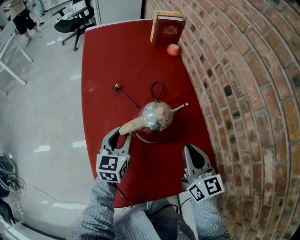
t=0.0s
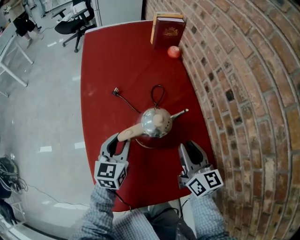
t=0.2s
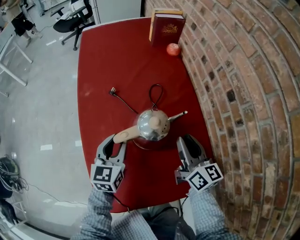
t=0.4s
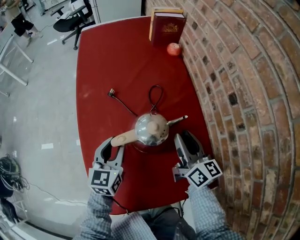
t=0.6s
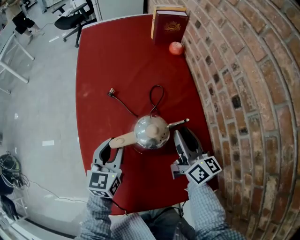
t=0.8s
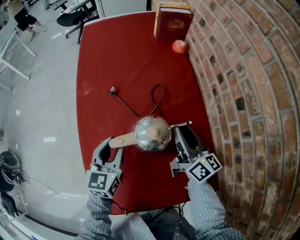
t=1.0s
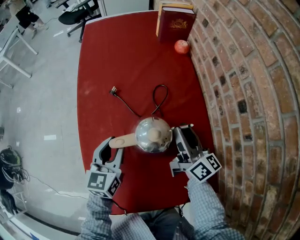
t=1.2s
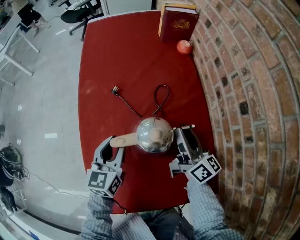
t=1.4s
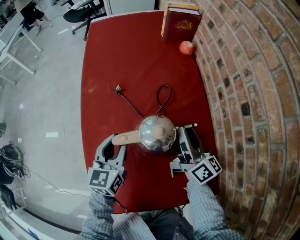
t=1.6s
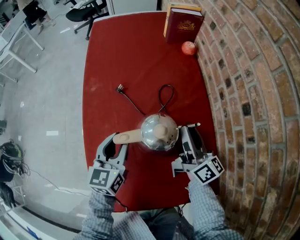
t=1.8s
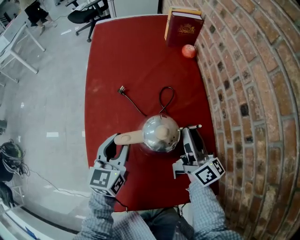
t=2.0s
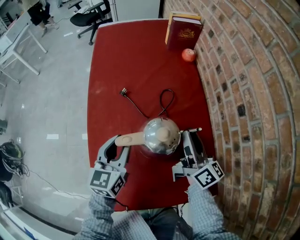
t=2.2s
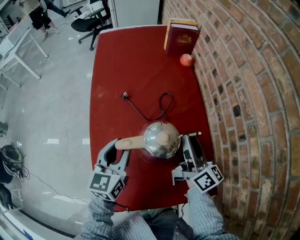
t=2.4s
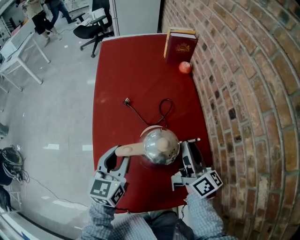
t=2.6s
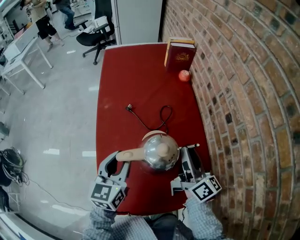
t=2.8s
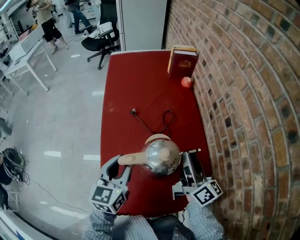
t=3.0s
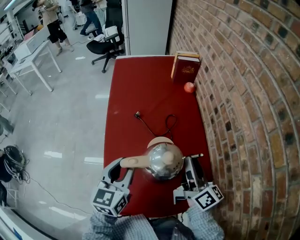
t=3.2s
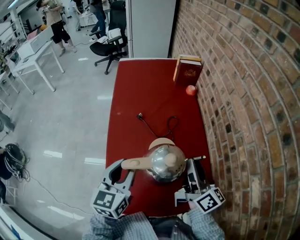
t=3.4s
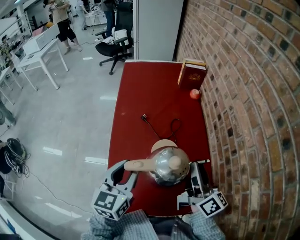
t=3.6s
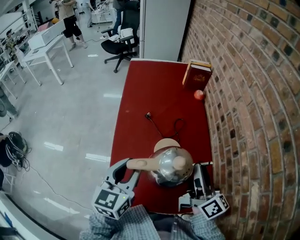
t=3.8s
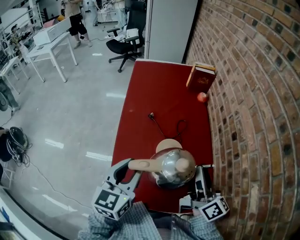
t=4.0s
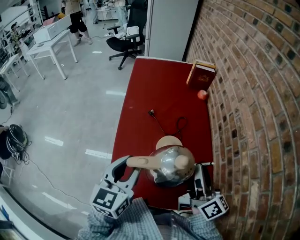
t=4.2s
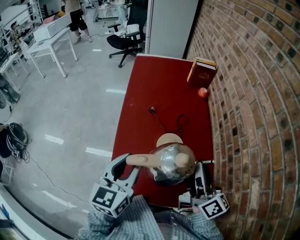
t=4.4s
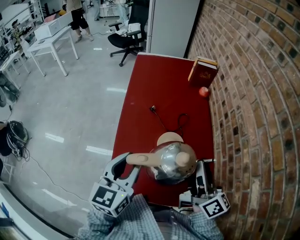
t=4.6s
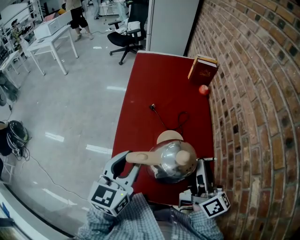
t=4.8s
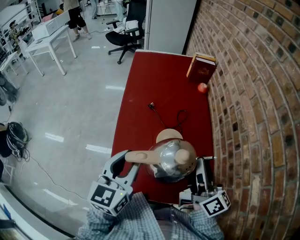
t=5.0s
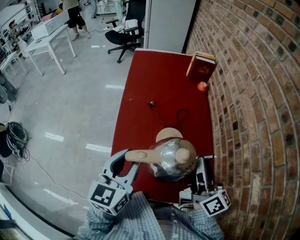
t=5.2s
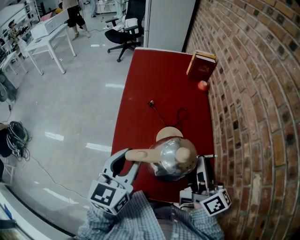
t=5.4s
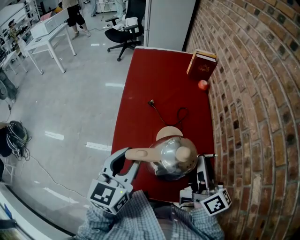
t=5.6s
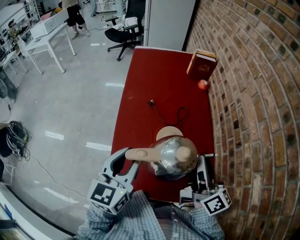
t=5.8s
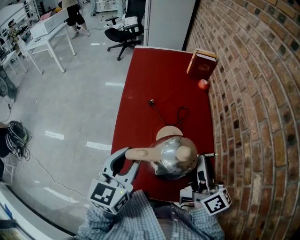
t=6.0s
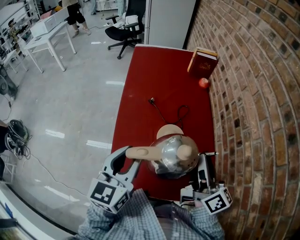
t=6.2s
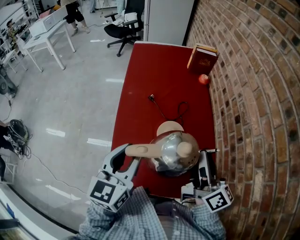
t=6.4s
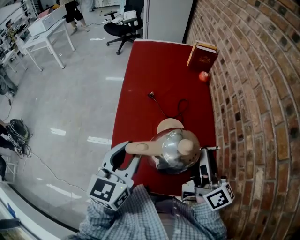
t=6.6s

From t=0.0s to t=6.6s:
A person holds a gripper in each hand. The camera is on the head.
From t=0.0s to t=1.6s: The right gripper travels forward by approximately 15 cm, swivels approximately 40 degrees, and opens.
From t=1.6s to t=3.2s: Both grippers travel together upward and backward, about 15 cm.
From t=3.2s to t=5.0s: The two grippers go roughly 10 cm upward and backward.
From t=5.0s to t=6.6s: Both grippers stay put.

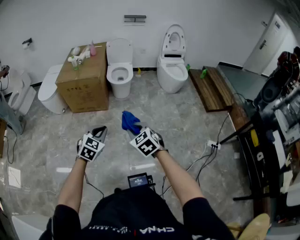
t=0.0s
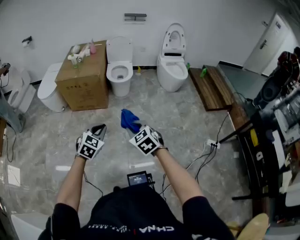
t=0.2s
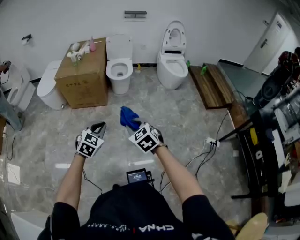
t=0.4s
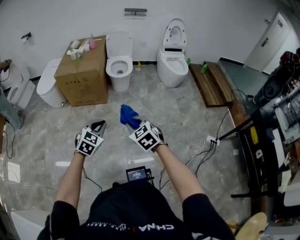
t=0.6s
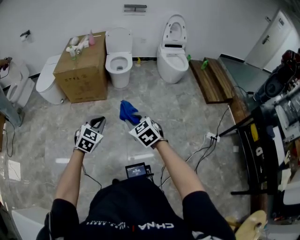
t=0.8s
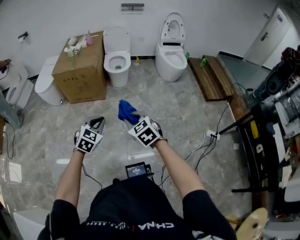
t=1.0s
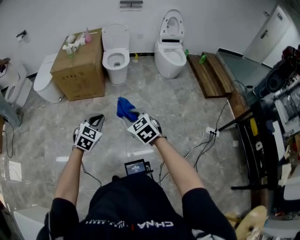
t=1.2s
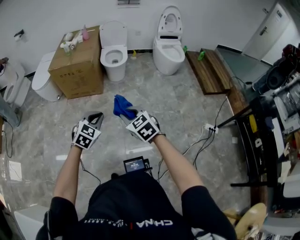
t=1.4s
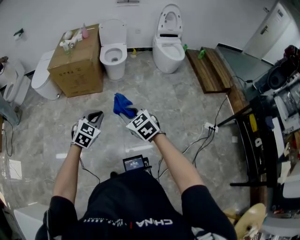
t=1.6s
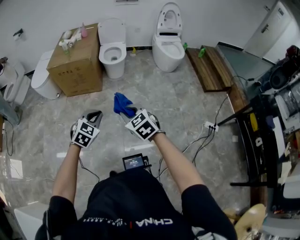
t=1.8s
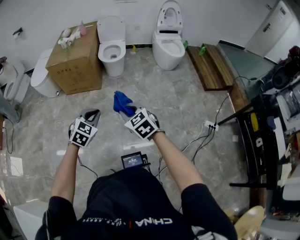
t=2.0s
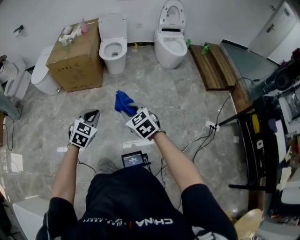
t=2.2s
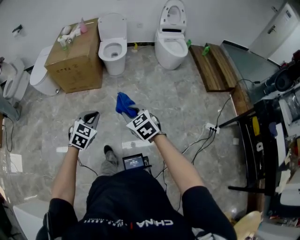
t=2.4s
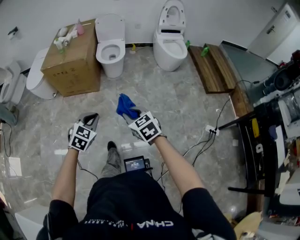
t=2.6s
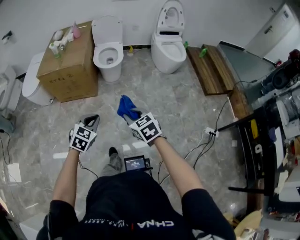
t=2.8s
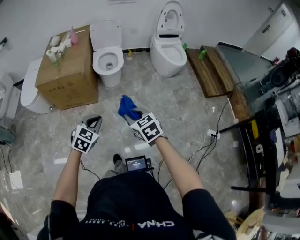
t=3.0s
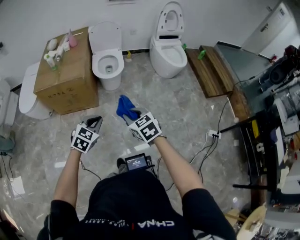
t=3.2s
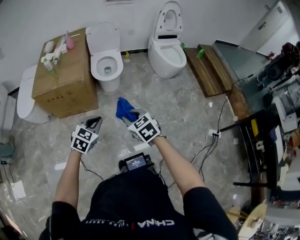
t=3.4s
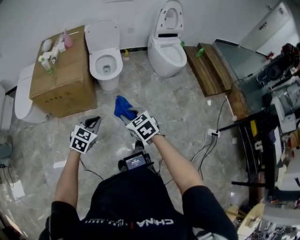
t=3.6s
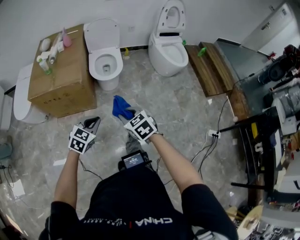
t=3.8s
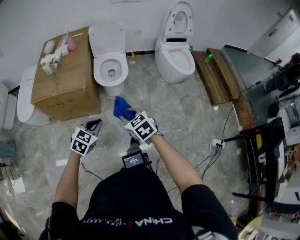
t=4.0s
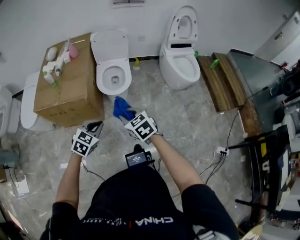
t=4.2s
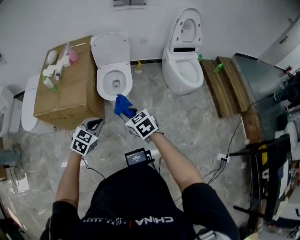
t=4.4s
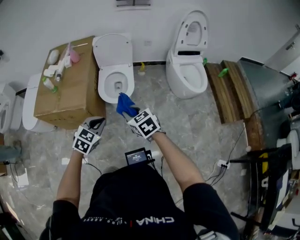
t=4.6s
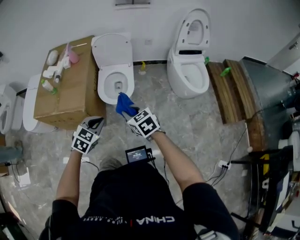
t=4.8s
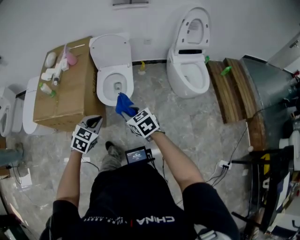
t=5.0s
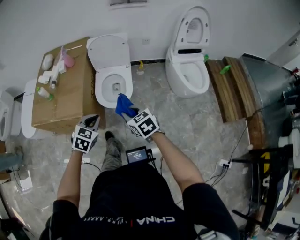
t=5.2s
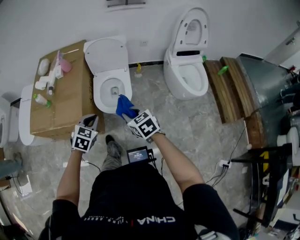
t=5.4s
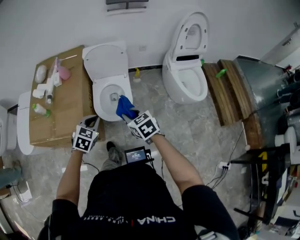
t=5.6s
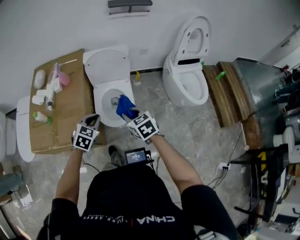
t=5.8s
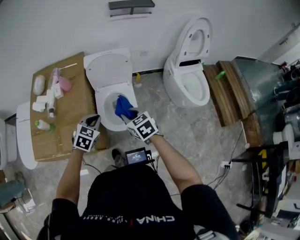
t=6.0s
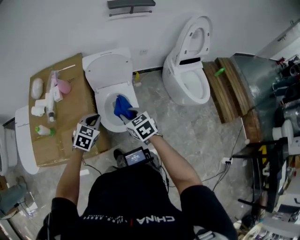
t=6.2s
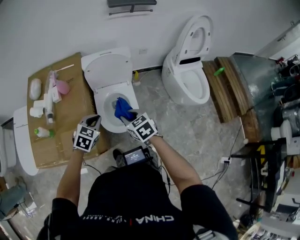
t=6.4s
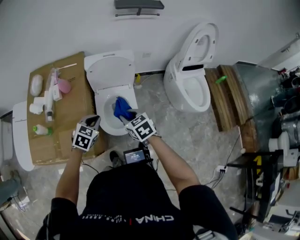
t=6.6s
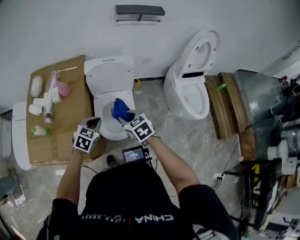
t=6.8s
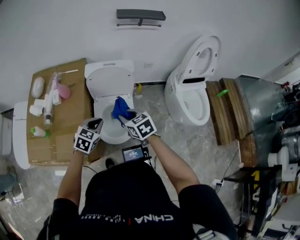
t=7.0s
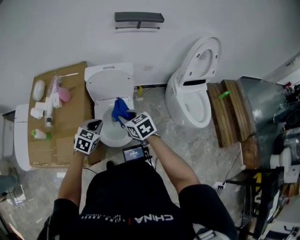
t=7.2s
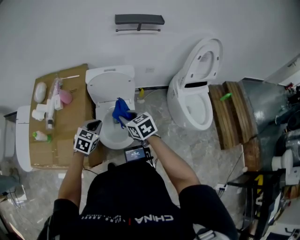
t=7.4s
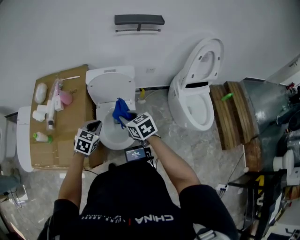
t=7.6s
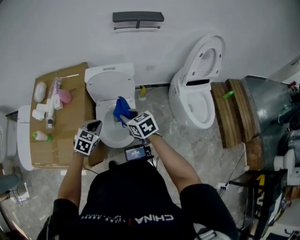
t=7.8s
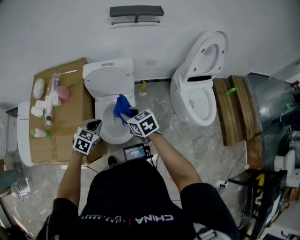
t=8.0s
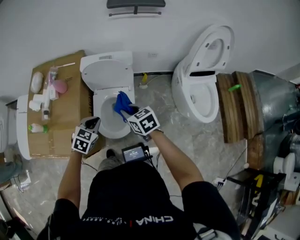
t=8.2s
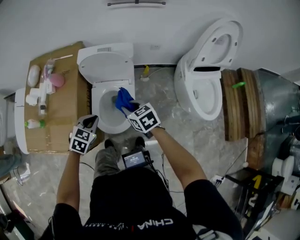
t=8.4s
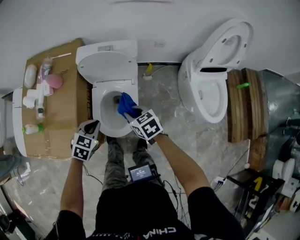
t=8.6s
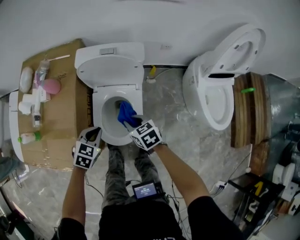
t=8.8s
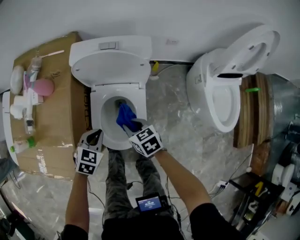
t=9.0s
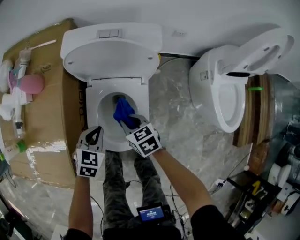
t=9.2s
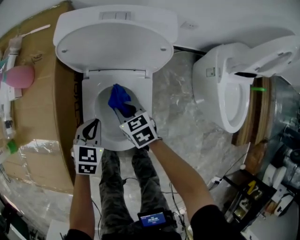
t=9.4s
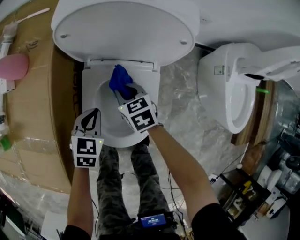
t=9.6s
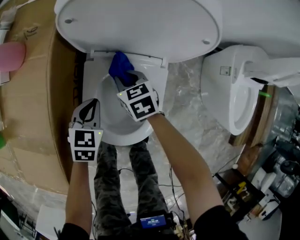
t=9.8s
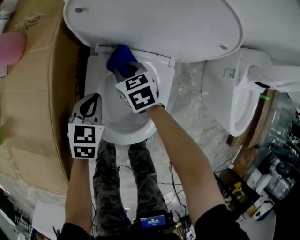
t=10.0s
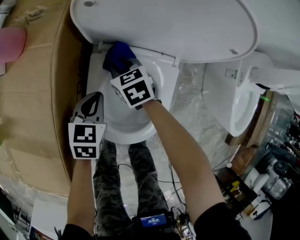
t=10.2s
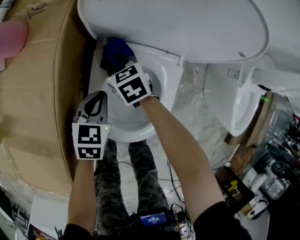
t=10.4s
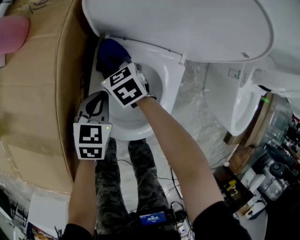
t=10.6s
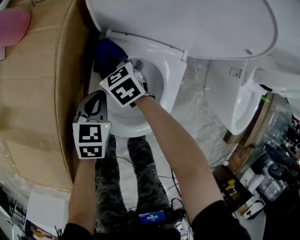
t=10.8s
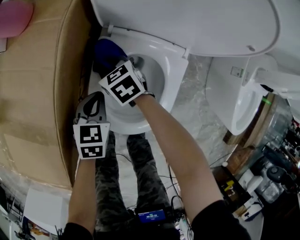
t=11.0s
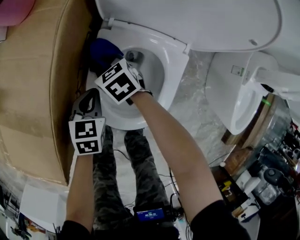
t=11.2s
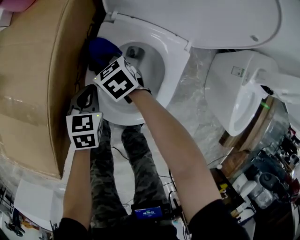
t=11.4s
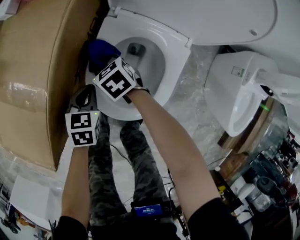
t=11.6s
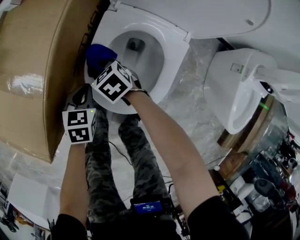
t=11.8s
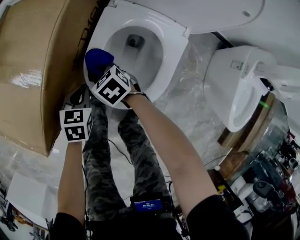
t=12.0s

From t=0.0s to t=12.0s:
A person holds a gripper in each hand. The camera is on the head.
From t=0.0s to t=1.6s: The left gripper shifts by roughly 5 cm.
From t=1.6s to t=3.0s: Both grippers move forward, approximately 25 cm.
From t=3.0s to t=4.4s: Both grippers move forward, about 35 cm.
From t=4.4s to t=6.0s: The grippers both shift forward by some 35 cm.
From t=6.0s to t=7.6s: Both grippers move forward, roughly 10 cm.
From t=7.6s to t=9.0s: The grippers both shift downward by some 25 cm.
From t=9.0s to t=10.4s: The left gripper moves downward and forward, some 20 cm, and changes its angle by roughly 30 degrees. Meanwhile the right gripper is displaced downward, forward and to the left by approximately 35 cm.
From t=10.4s to t=12.0s: The right gripper shifts by about 25 cm, and turns by roughly 30 degrees. The left gripper changes place by some 20 cm.

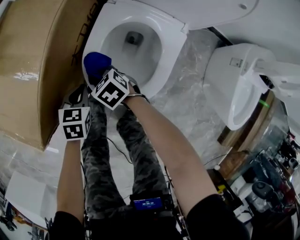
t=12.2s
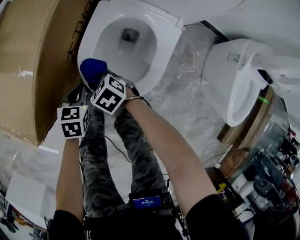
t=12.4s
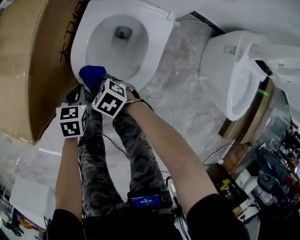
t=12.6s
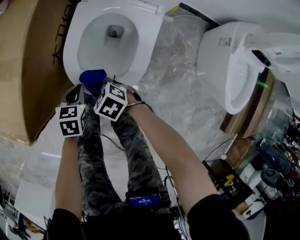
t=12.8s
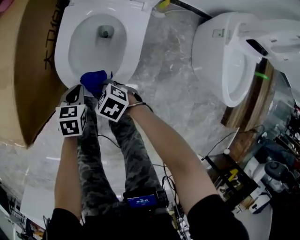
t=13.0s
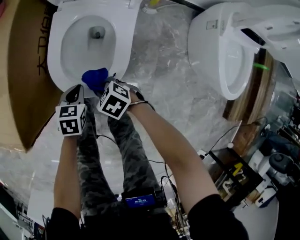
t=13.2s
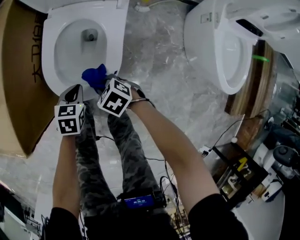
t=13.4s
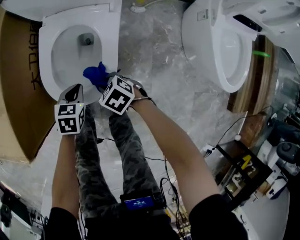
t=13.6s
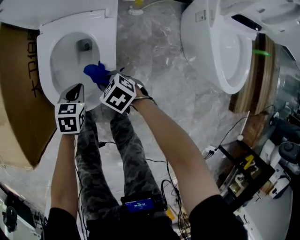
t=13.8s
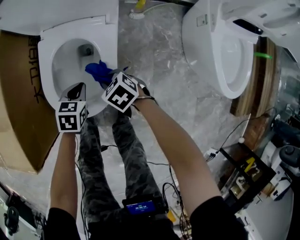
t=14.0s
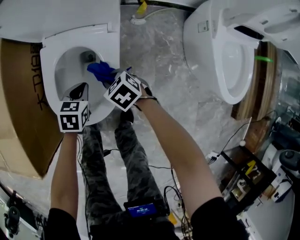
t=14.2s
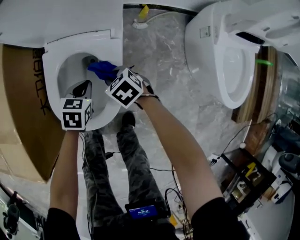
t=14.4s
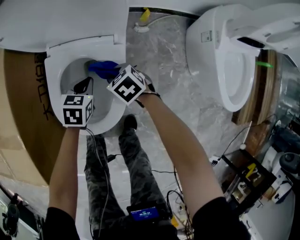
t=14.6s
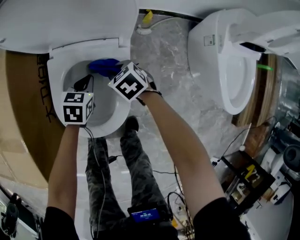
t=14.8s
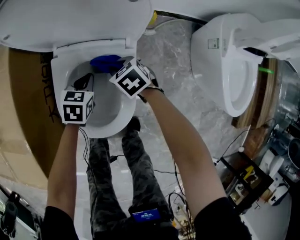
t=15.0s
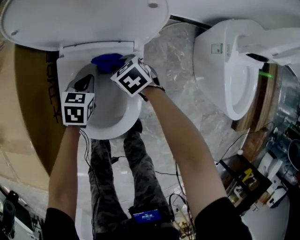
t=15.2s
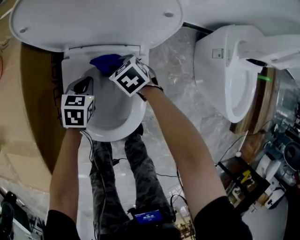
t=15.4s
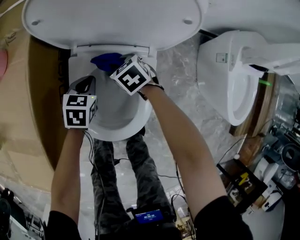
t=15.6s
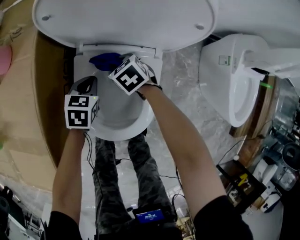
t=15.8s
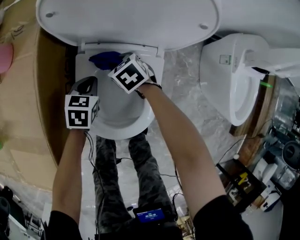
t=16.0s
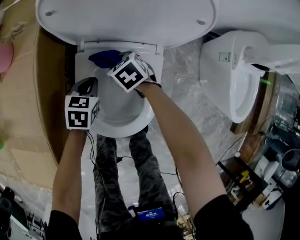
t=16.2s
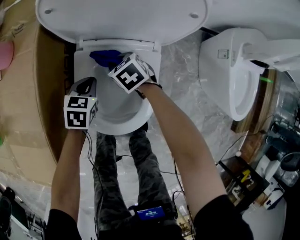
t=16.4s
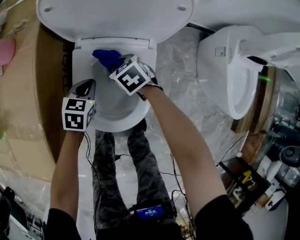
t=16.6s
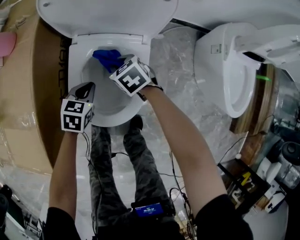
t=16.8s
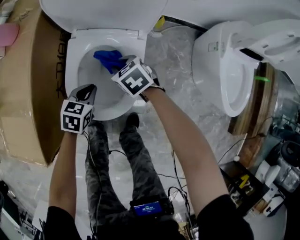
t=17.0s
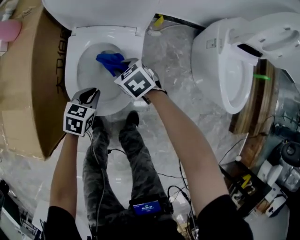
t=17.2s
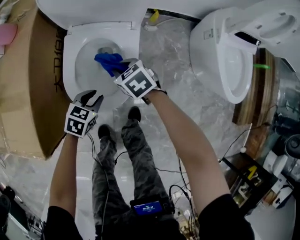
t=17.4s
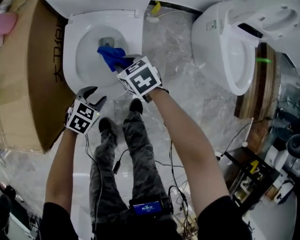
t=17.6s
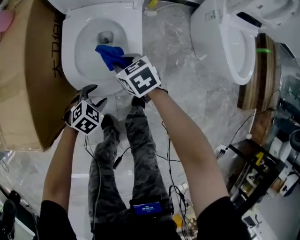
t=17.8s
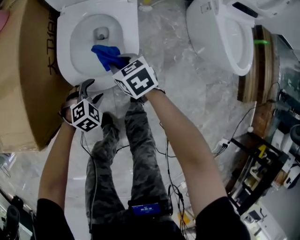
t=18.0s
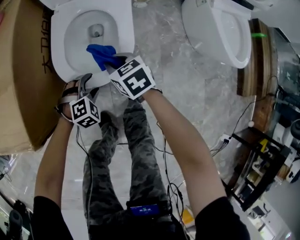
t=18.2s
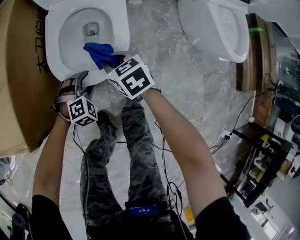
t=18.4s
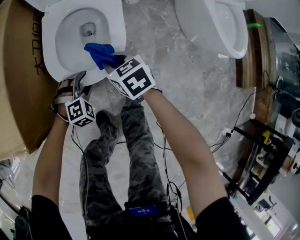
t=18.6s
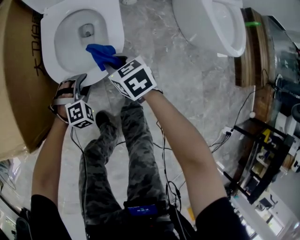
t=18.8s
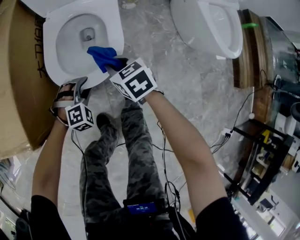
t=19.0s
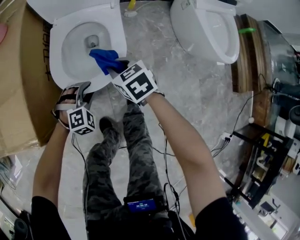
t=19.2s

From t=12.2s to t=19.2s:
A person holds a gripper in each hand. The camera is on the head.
From t=12.2s to t=13.6s: Both grippers travel together to the right and backward, approximately 20 cm. The left gripper rotates some 20 degrees.
From t=13.6s to t=15.0s: The grippers both shift forward by approximately 20 cm.
From t=15.0s to t=16.4s: The right gripper shifts roughly 10 cm to the left and forward; the left gripper goes some 10 cm to the left.
From t=16.4s to t=17.8s: Both grippers move backward, roughly 25 cm. The left gripper turns by approximately 40 degrees, and opens up.
From t=17.8s to t=19.2s: The right gripper moves backward, some 5 cm. Meanwhile the left gripper rotates some 40 degrees.
